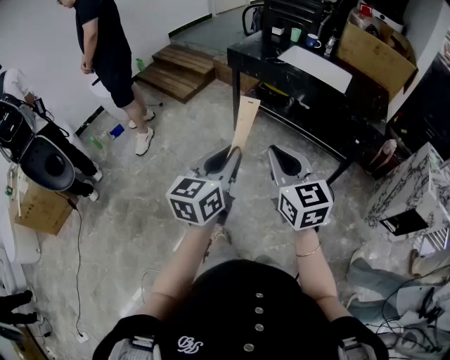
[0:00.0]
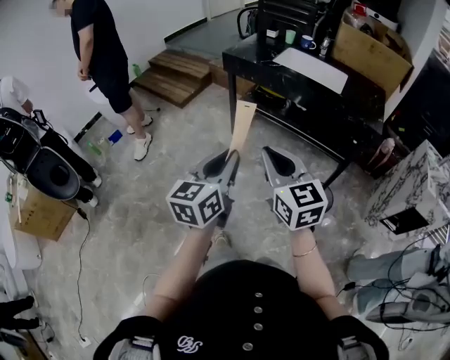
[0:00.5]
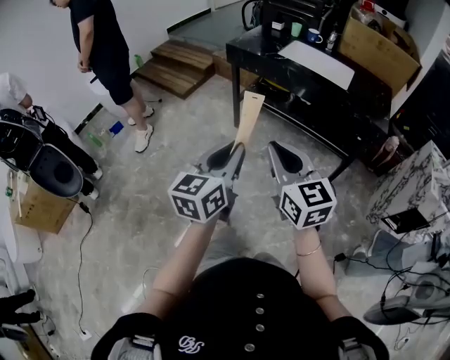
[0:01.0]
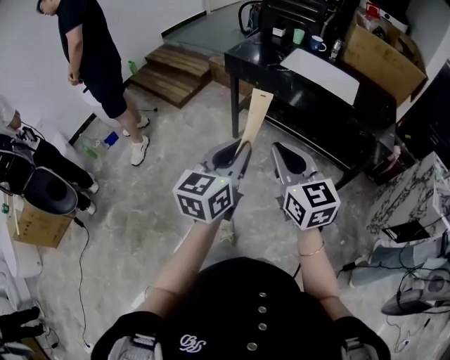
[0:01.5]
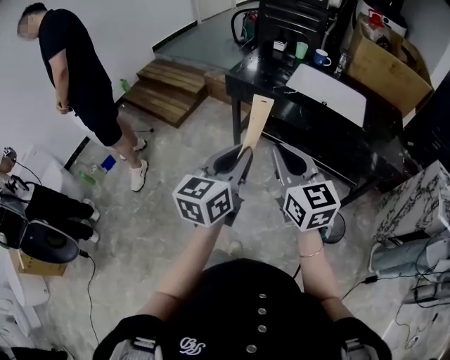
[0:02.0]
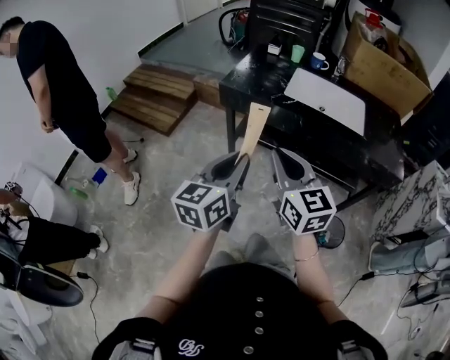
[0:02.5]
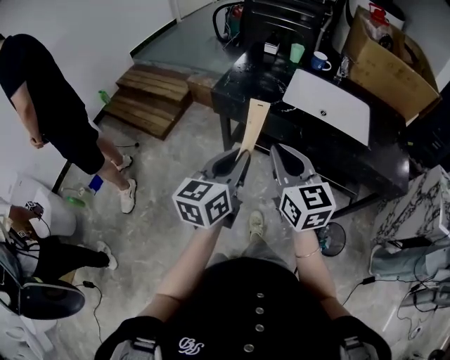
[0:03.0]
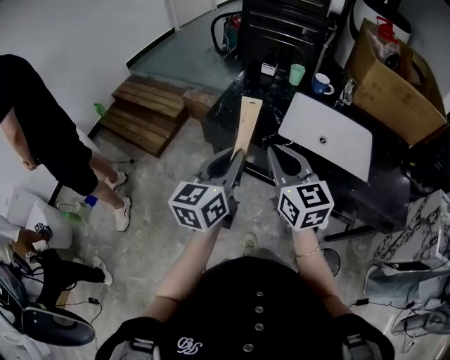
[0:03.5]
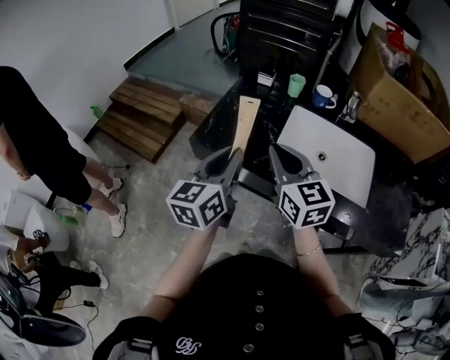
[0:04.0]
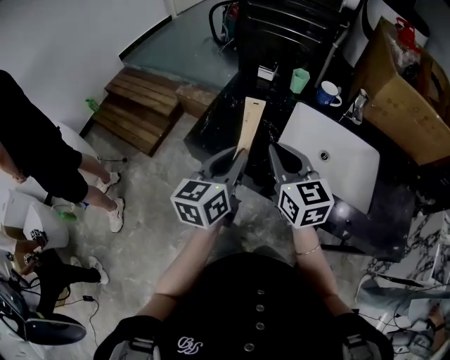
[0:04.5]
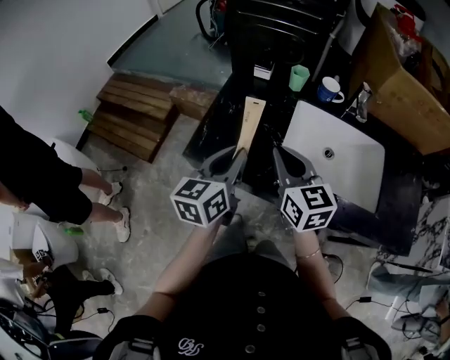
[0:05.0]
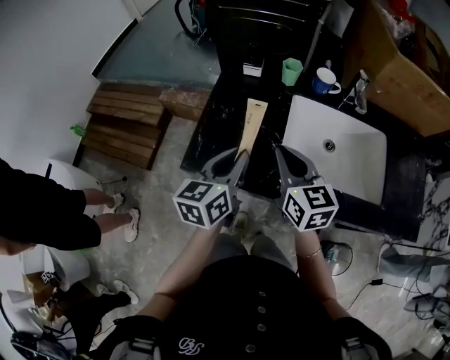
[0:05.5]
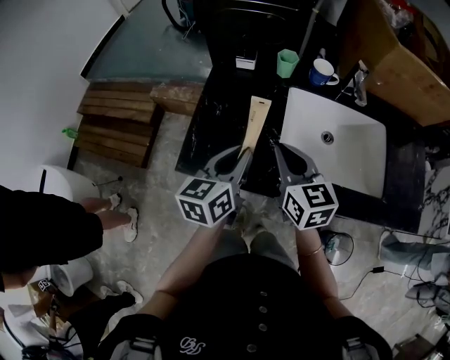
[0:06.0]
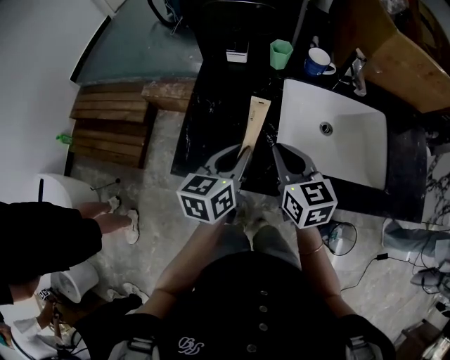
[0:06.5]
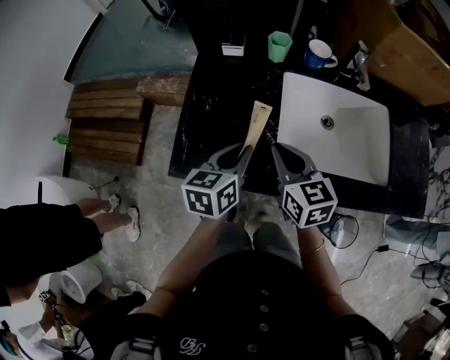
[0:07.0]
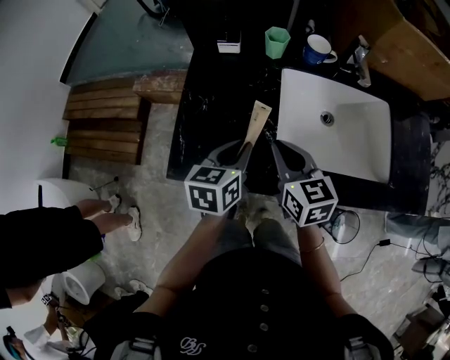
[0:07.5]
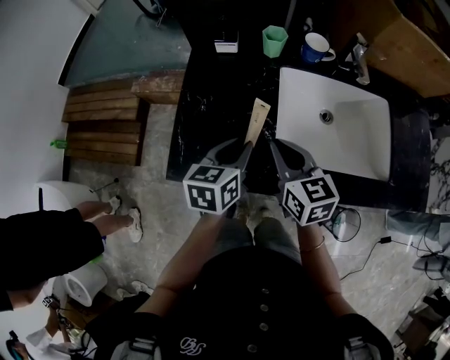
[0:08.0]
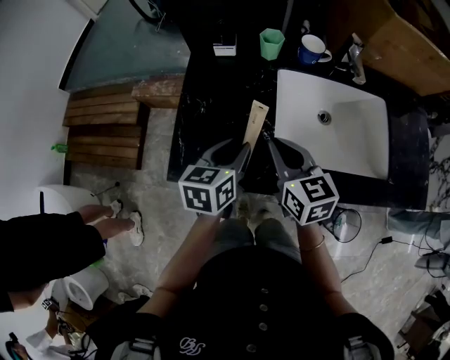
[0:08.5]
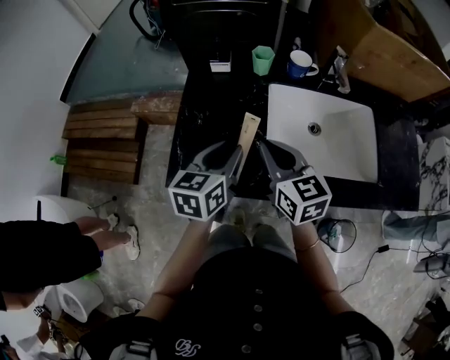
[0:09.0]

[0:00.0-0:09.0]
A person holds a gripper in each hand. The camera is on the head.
0:00.0 to 0:02.0: The grippers both shift forward by about 25 cm.
0:02.0 to 0:04.5: Both grippers are carried forward, roughly 50 cm.
0:04.5 to 0:07.0: Both grippers travel together downward and forward, approximately 15 cm. The left gripper changes its angle by roughly 30 degrees, while the right gripper changes its angle by roughly 20 degrees.
0:07.0 to 0:09.0: There are only small adjustments of the grippers.

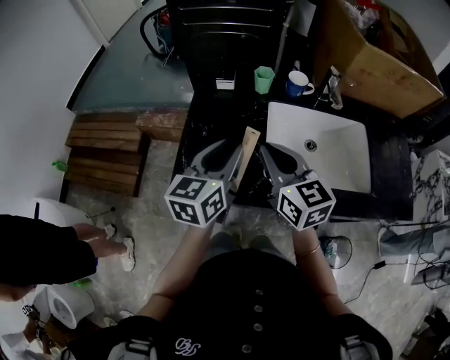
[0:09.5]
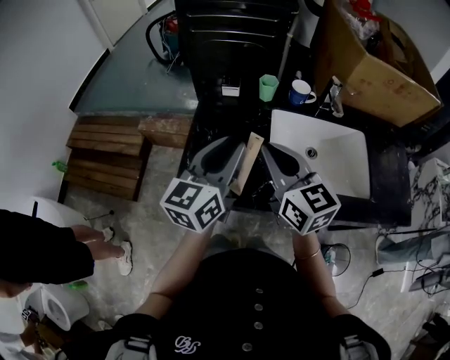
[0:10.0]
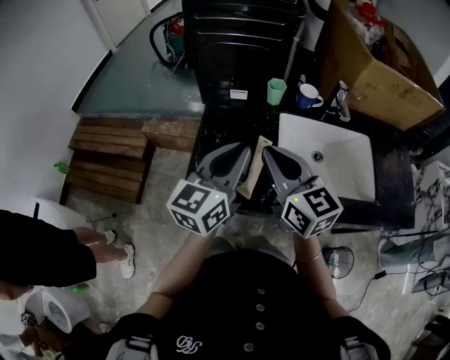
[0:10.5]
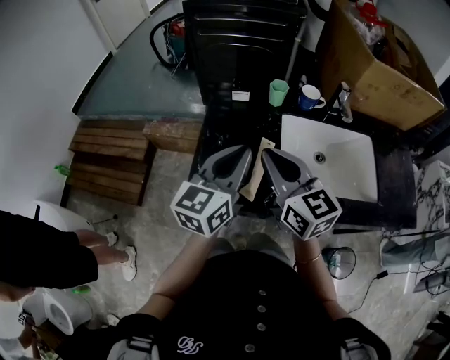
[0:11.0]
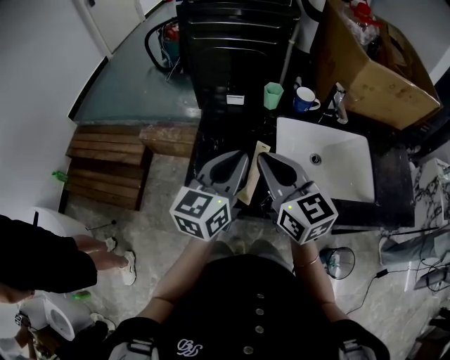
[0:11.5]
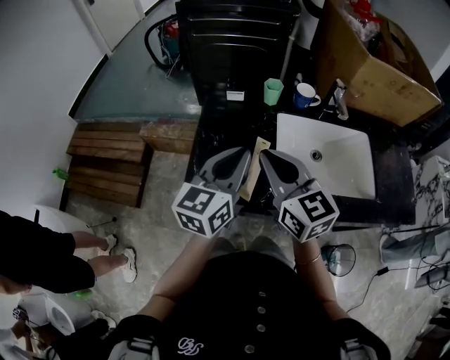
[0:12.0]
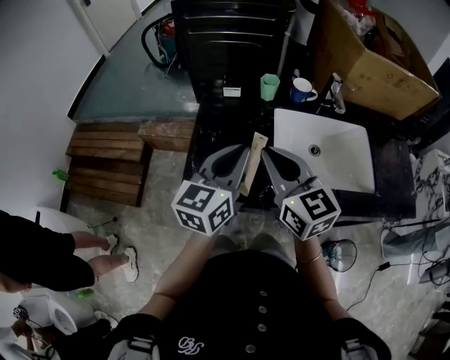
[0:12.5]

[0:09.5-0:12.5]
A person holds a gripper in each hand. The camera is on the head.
0:09.5 to 0:11.0: The right gripper goes some 5 cm to the left, while the left gripper closes up.
0:11.0 to 0:12.5: The grippers make only small movements.

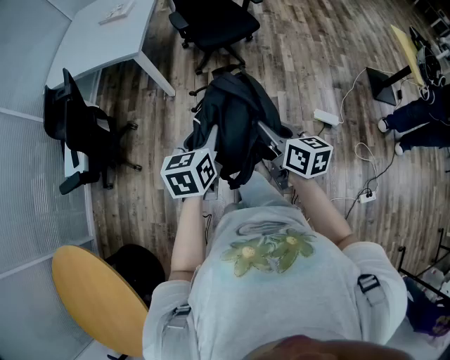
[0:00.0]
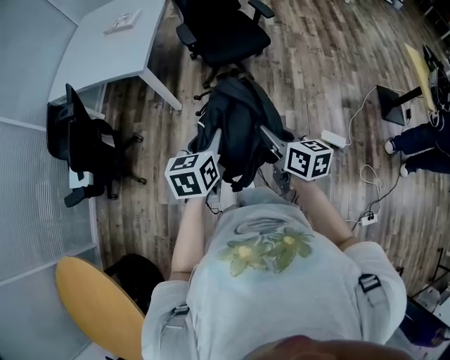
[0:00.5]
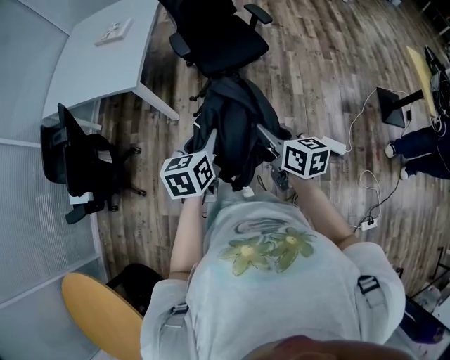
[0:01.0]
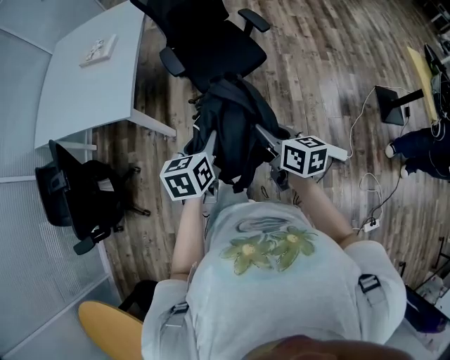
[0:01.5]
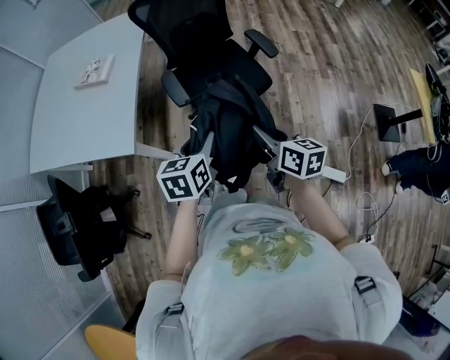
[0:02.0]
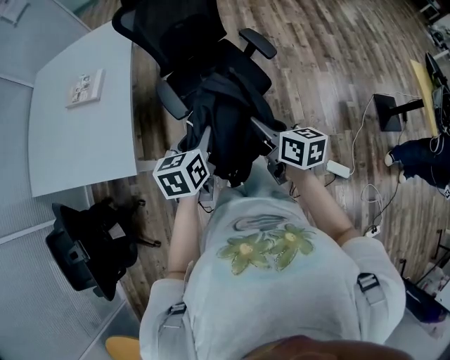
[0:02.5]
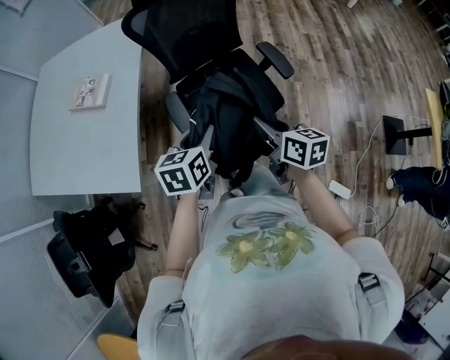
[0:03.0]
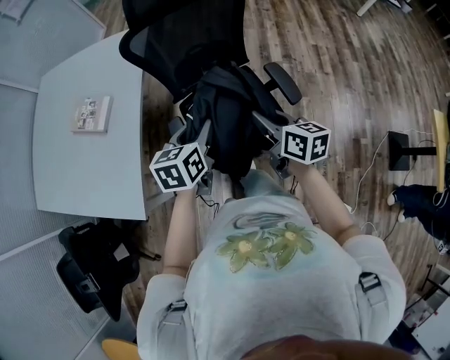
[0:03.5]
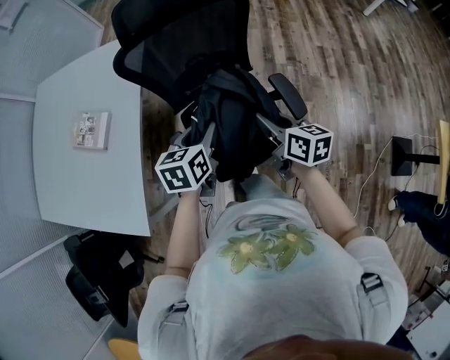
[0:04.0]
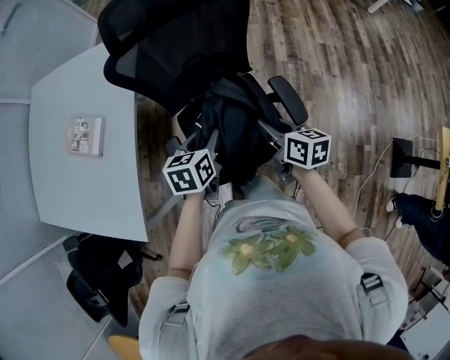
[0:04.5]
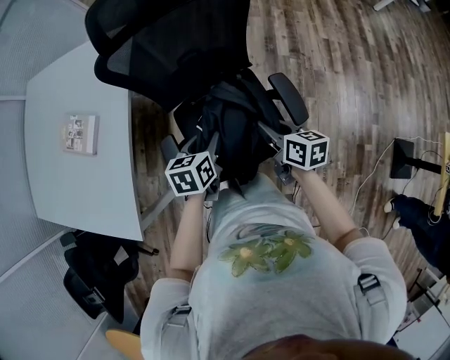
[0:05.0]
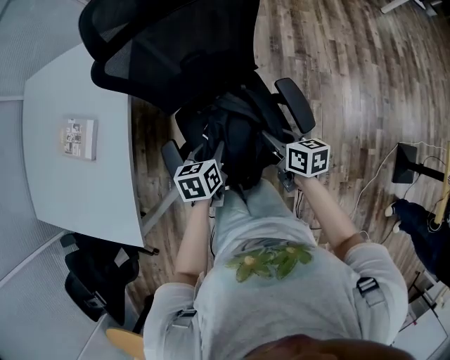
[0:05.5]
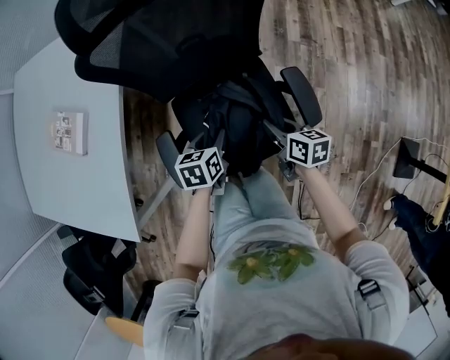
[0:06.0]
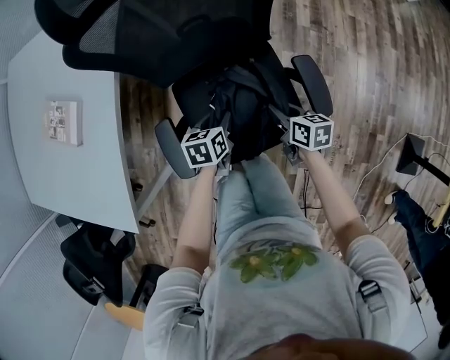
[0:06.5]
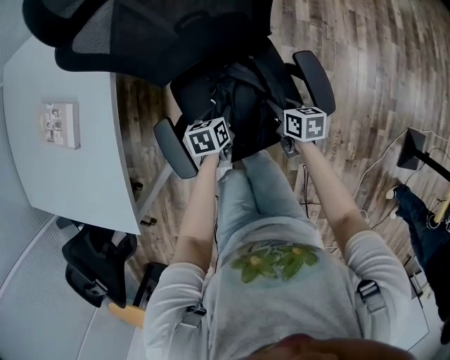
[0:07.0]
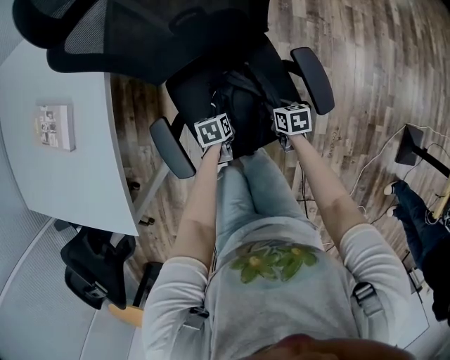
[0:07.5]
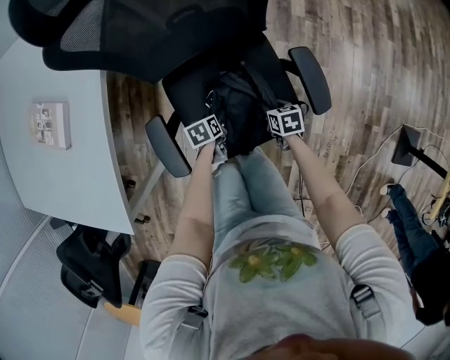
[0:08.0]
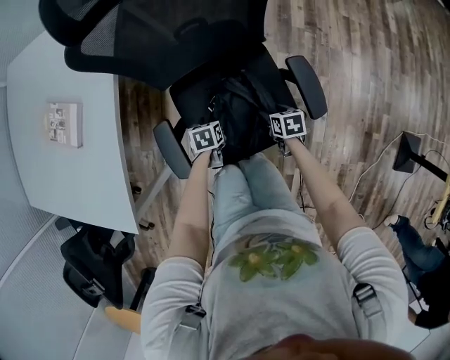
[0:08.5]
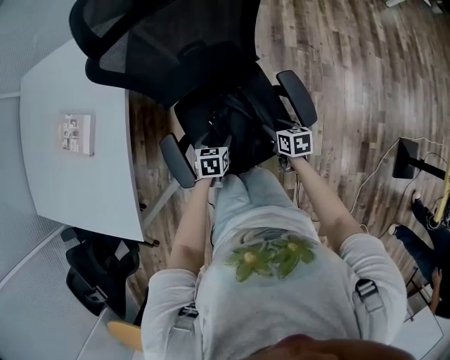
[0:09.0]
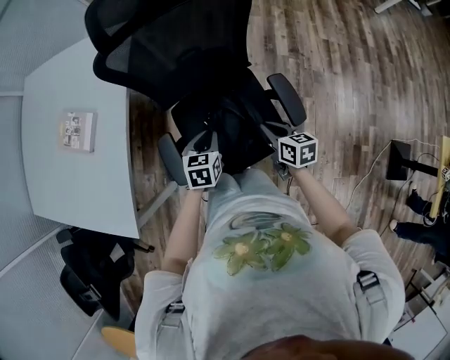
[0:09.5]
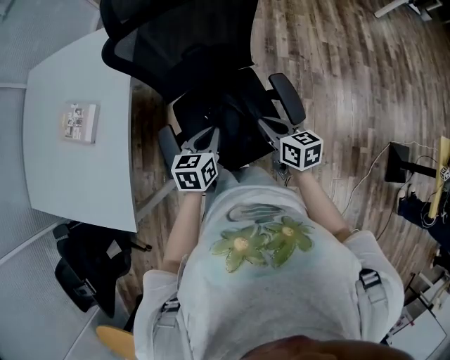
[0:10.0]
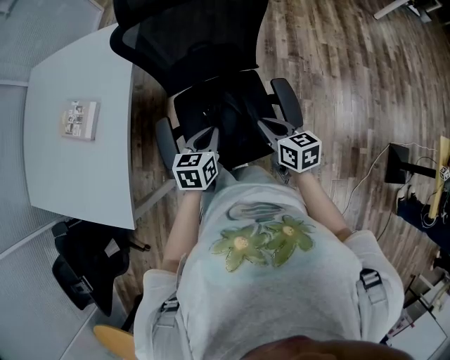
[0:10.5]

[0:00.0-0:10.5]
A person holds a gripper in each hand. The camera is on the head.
0:00.0 to 0:02.0: Both grippers are carried forward, approximately 50 cm.
0:02.0 to 0:04.0: The two grippers travel together, forward, about 40 cm.
0:04.0 to 0:06.5: The grippers both shift downward by about 25 cm.
0:06.5 to 0:08.5: Both grippers move downward, approximately 10 cm. The right gripper turns by about 20 degrees, and opens up. The left gripper opens up.
0:08.5 to 0:10.5: Both grippers move upward, about 30 cm. The right gripper points its fingers some 30 degrees further upward, and closes. Meanwhile the left gripper angles its fingers upward, by about 30 degrees, and closes.

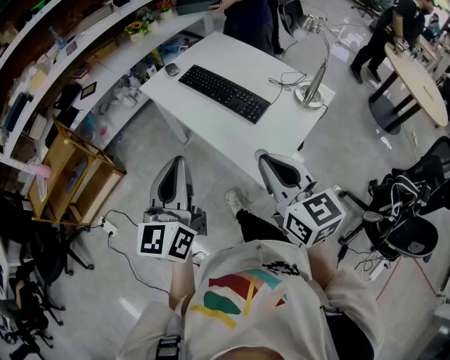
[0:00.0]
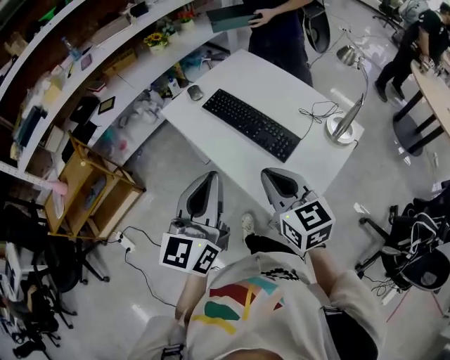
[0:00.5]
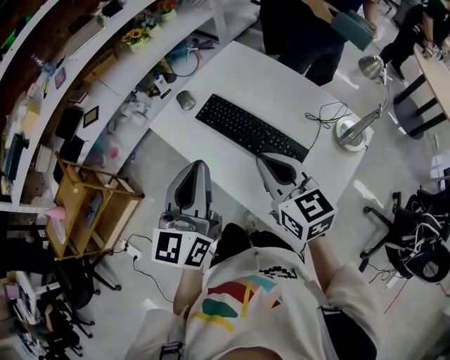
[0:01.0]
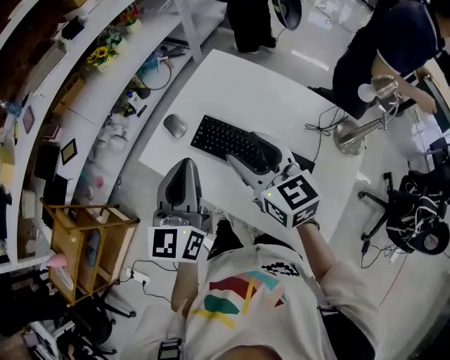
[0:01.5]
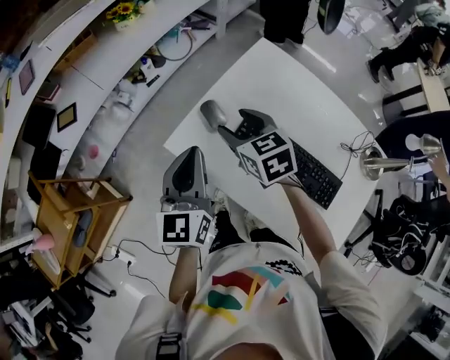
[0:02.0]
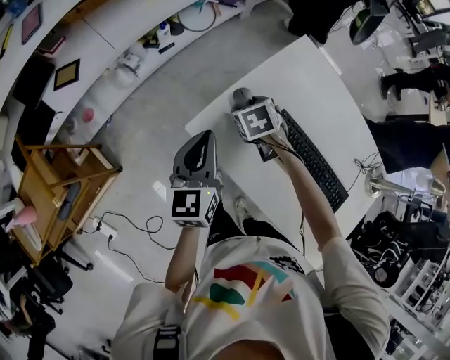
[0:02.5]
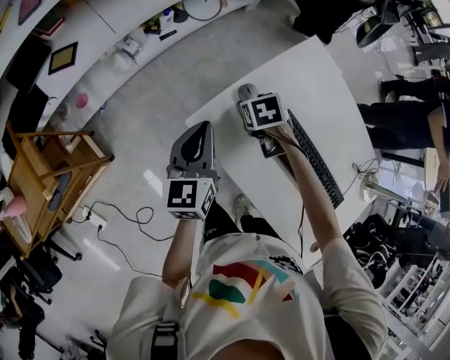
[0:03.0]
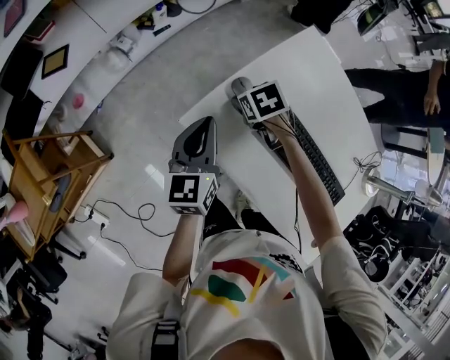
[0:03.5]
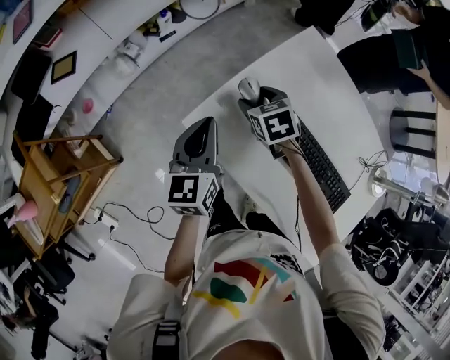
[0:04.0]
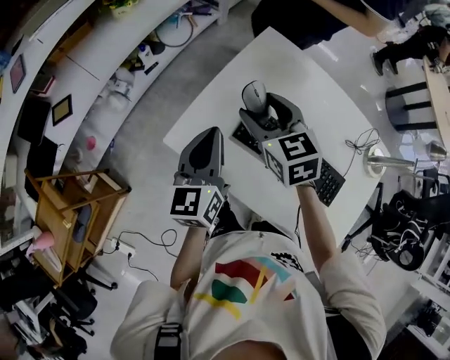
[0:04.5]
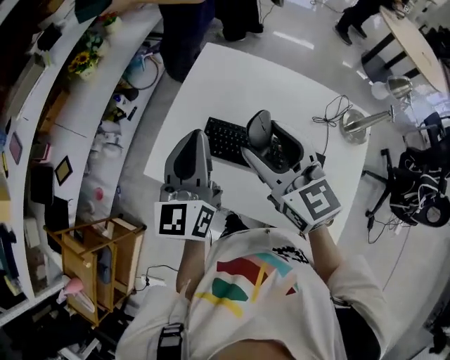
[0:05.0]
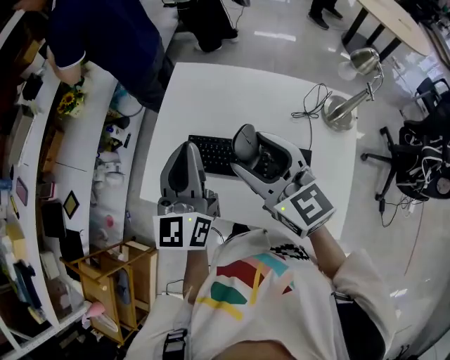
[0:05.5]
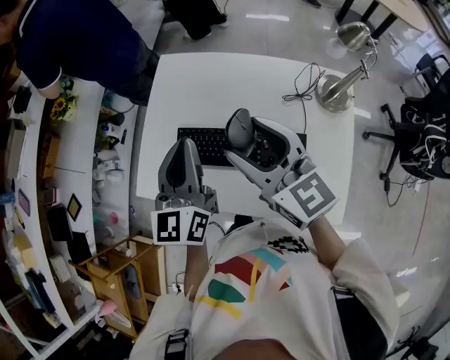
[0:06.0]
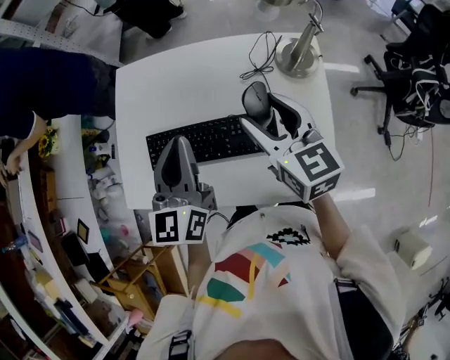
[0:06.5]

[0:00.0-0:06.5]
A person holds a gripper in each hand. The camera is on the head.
0:00.0 to 0:02.0: The two grippers travel together, forward, some 70 cm. The right gripper turns by approximately 30 degrees, and opens its fingers.
0:02.0 to 0:04.5: The left gripper travels downward and back again, some 15 cm each way. Meanwhile the right gripper goes downward and returns, approximately 20 cm each way.
0:04.5 to 0:06.5: The right gripper changes place by about 40 cm, and changes its angle by about 40 degrees. Meanwhile the left gripper ends up about 30 cm from where it was, and rotates about 30 degrees.
